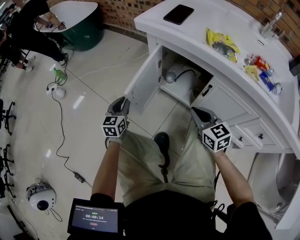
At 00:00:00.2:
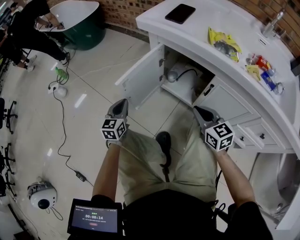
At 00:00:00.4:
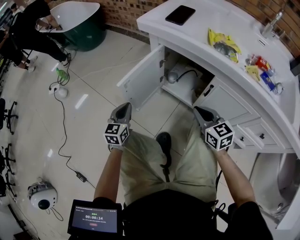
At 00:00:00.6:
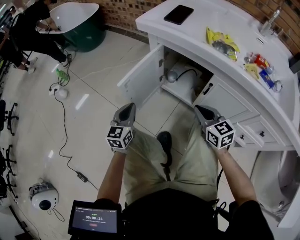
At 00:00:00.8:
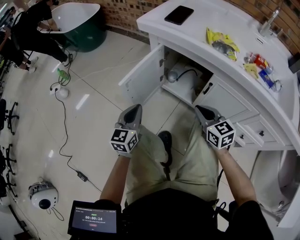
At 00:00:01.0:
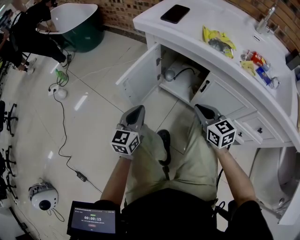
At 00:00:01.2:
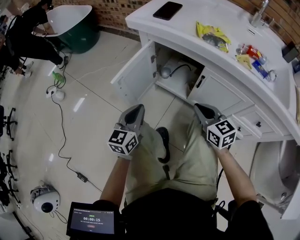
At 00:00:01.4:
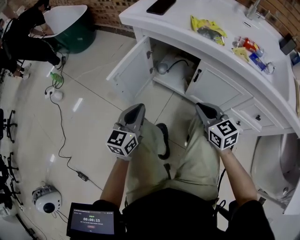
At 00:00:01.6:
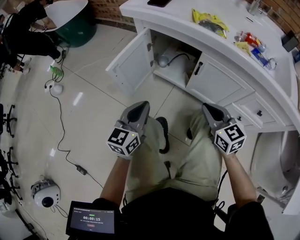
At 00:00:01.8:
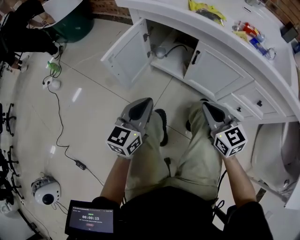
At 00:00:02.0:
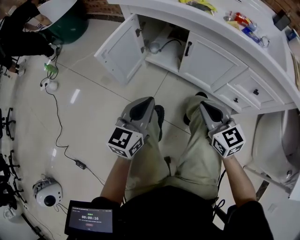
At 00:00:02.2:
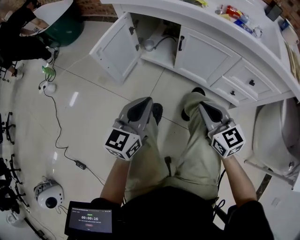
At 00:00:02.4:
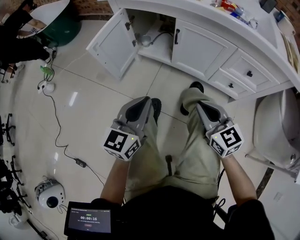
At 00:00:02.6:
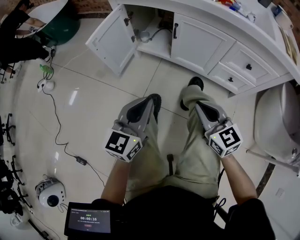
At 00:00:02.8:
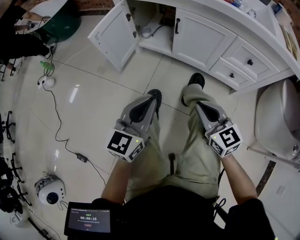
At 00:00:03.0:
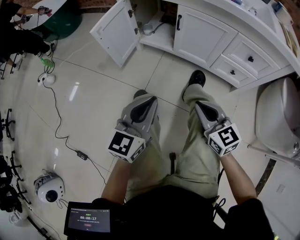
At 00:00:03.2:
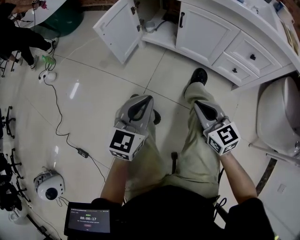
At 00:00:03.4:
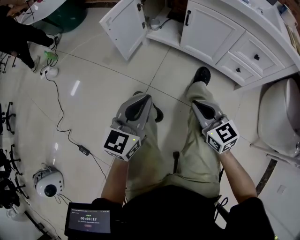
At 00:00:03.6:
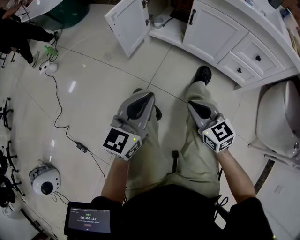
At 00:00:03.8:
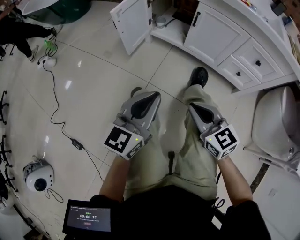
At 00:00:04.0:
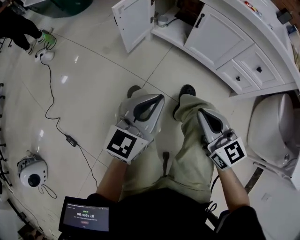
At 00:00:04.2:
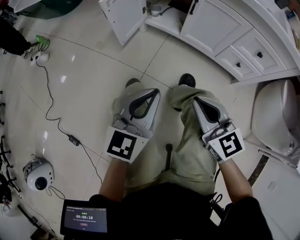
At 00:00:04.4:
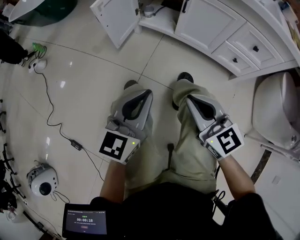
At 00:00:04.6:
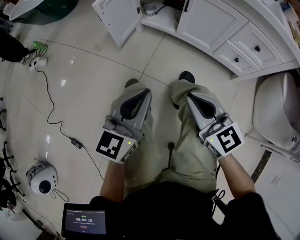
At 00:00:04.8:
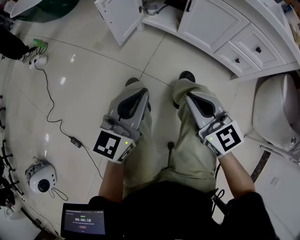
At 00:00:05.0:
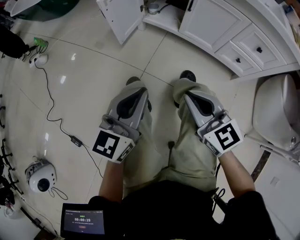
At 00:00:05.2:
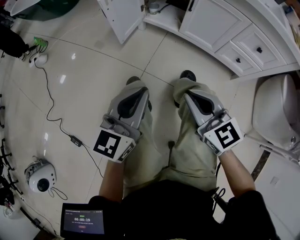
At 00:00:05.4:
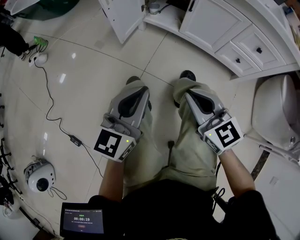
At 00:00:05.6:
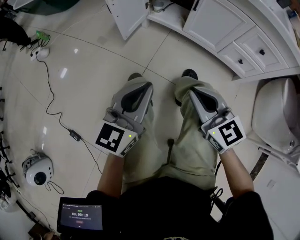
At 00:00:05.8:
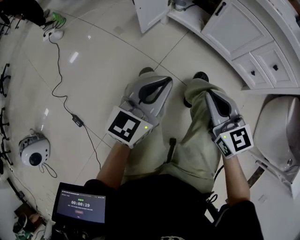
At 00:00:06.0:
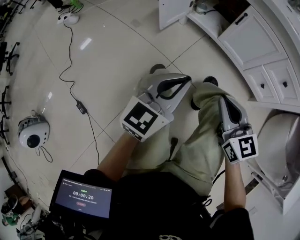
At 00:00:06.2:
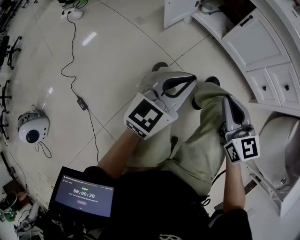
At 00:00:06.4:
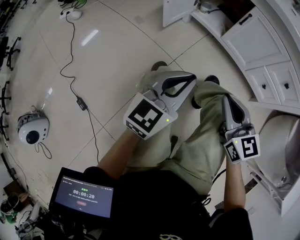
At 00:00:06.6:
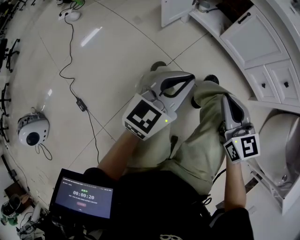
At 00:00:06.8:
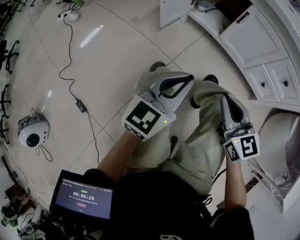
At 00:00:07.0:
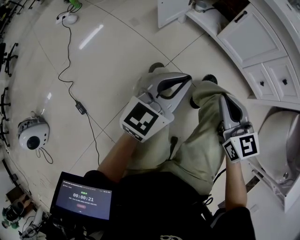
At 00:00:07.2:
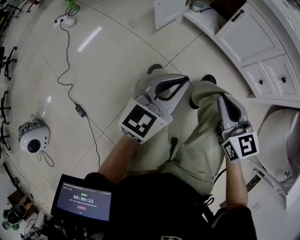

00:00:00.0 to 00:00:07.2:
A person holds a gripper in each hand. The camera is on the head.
00:00:00.0 to 00:00:01.4: The left gripper goes roughly 20 cm backward, to the right and upward, and closes, while the right gripper shifts approximately 5 cm backward.
00:00:01.4 to 00:00:02.8: The right gripper moves backward, about 25 cm; the left gripper is displaced backward and to the right by about 25 cm.
00:00:02.8 to 00:00:04.4: The left gripper heads backward, covering approximately 5 cm; the right gripper is displaced to the left and backward by some 10 cm.
00:00:04.4 to 00:00:05.8: The grippers stay close to where they were, moving slightly.
00:00:05.8 to 00:00:07.2: Both grippers stay put.

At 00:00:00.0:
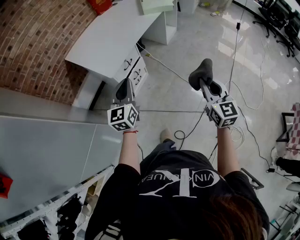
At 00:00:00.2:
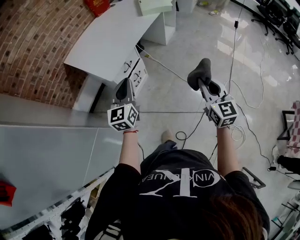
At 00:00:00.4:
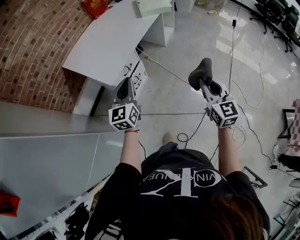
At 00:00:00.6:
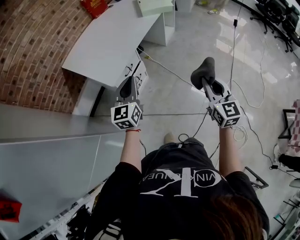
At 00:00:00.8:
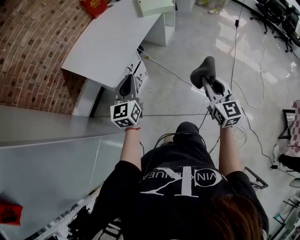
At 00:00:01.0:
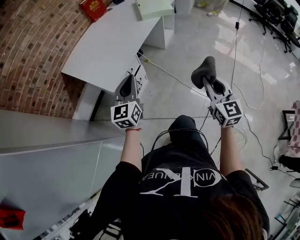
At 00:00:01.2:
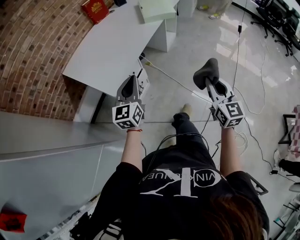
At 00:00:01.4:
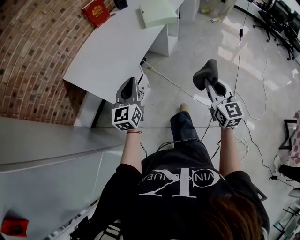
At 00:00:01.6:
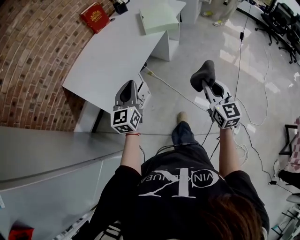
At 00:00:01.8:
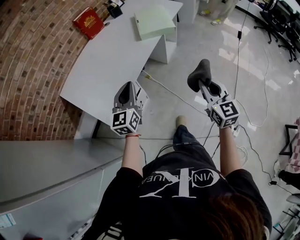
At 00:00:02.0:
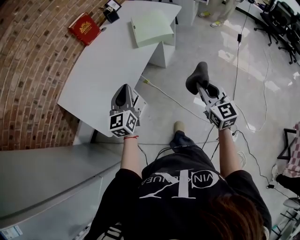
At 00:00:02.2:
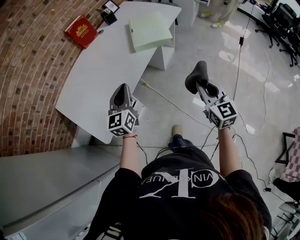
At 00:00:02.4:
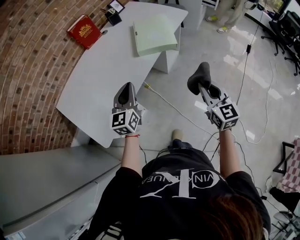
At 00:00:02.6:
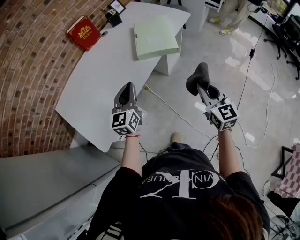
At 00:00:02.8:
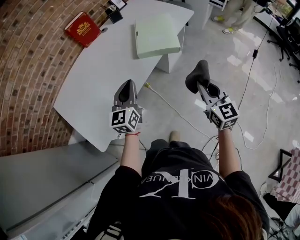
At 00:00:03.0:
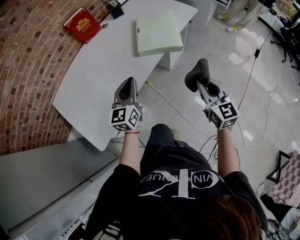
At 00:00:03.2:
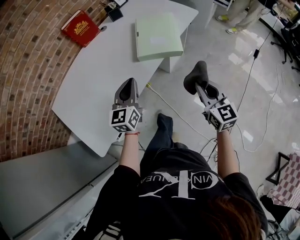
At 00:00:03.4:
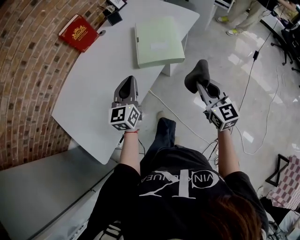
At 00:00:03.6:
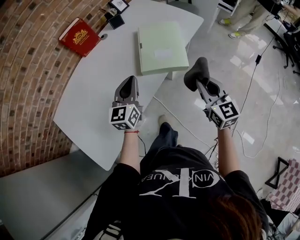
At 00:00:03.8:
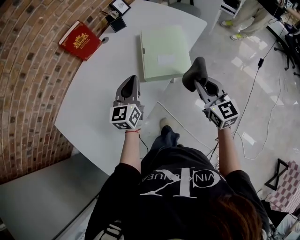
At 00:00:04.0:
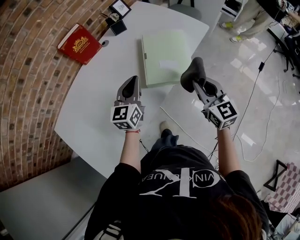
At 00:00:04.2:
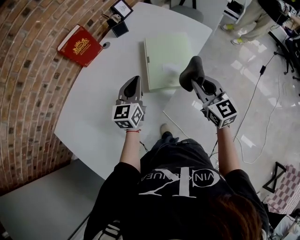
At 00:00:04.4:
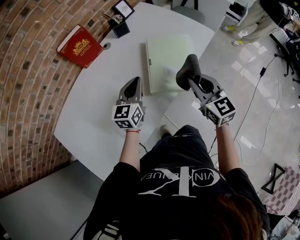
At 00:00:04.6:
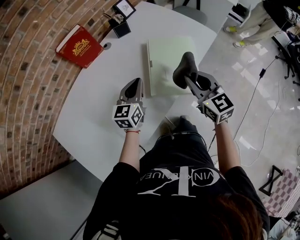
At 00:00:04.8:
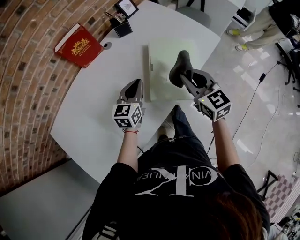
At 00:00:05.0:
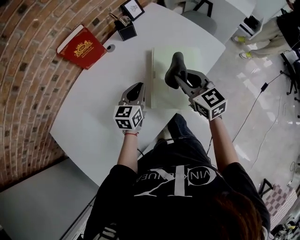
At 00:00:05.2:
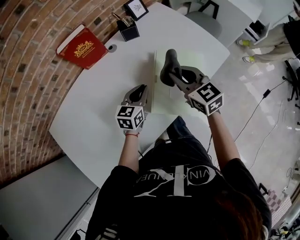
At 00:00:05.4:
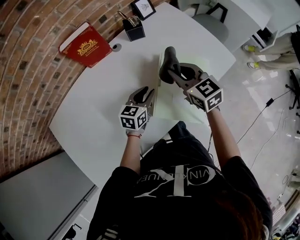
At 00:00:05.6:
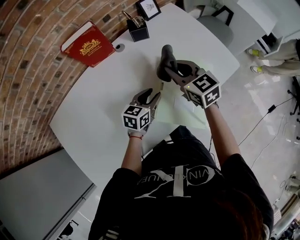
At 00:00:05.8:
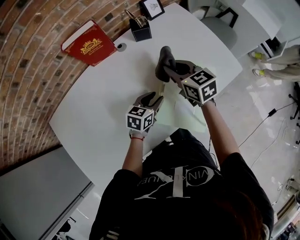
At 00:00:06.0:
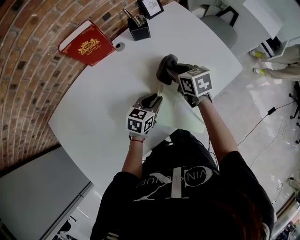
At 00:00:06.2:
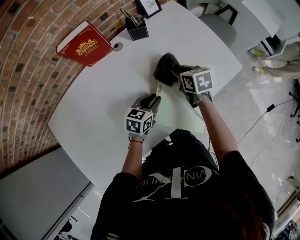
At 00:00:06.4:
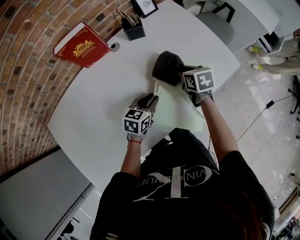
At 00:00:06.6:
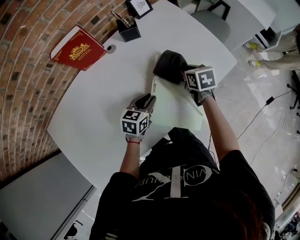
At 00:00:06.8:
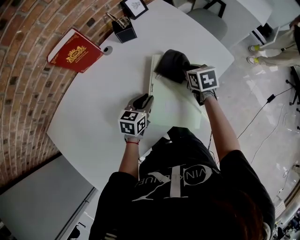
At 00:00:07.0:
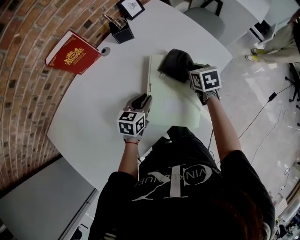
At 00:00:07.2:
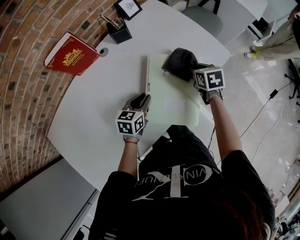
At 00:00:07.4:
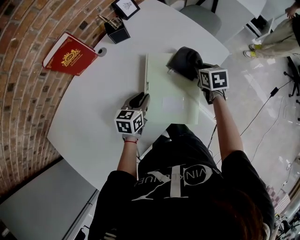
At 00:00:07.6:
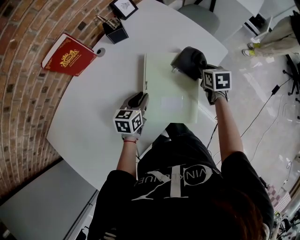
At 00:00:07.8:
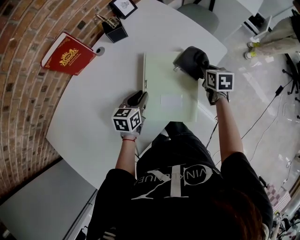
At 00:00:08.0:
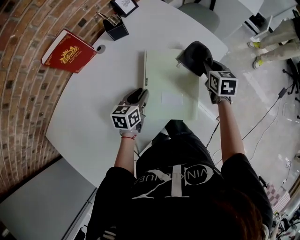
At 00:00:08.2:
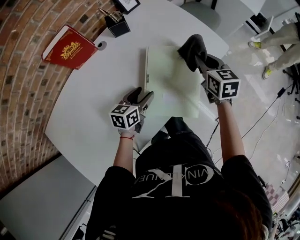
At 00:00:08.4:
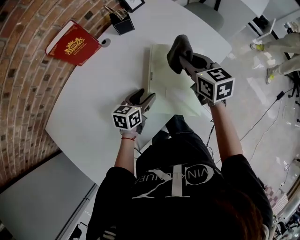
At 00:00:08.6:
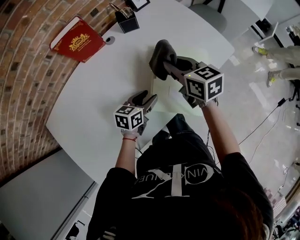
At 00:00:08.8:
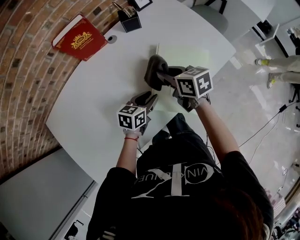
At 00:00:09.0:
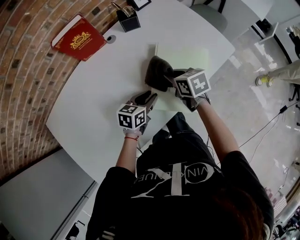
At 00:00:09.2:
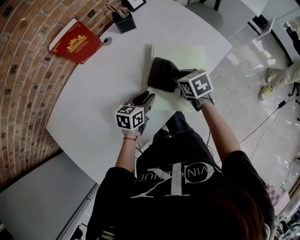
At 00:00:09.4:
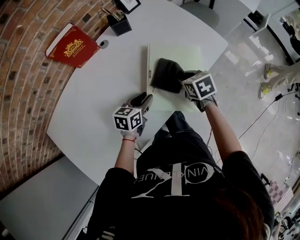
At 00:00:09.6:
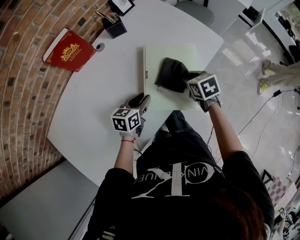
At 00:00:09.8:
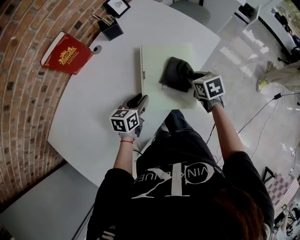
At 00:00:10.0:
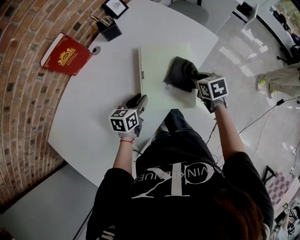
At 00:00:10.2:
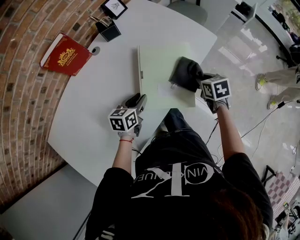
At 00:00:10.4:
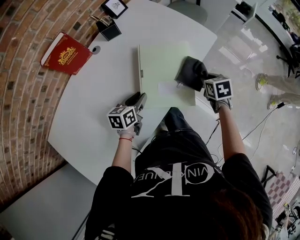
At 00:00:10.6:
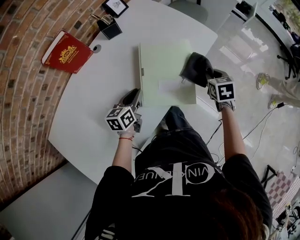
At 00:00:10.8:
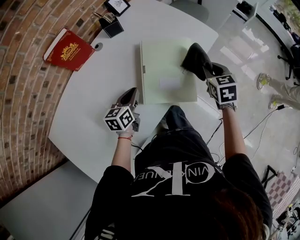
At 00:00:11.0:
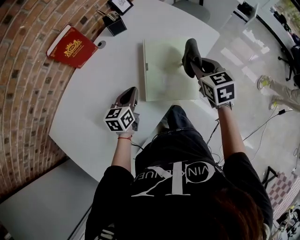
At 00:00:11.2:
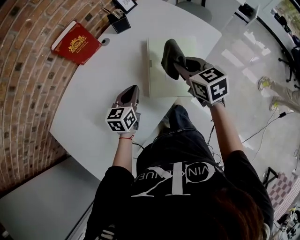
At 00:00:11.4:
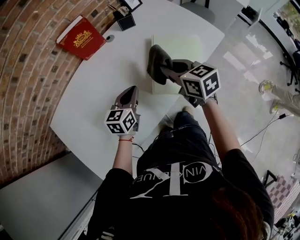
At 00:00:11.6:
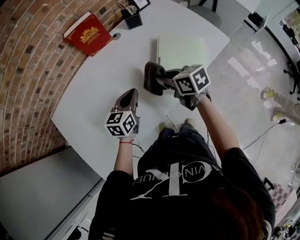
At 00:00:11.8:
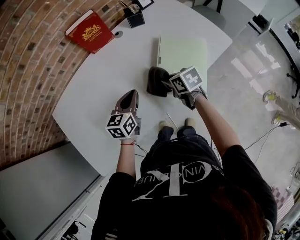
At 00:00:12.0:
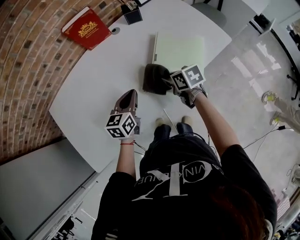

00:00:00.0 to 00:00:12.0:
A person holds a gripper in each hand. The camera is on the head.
00:00:00.0 to 00:00:01.6: The grippers both shift forward by about 20 cm.
00:00:01.6 to 00:00:03.0: The right gripper travels forward by some 30 cm; the left gripper shifts approximately 30 cm forward and to the right.
00:00:03.0 to 00:00:04.4: The two grippers go some 25 cm forward.
00:00:04.4 to 00:00:06.0: The left gripper goes approximately 15 cm downward, forward and to the right, turns by roughly 30 degrees, and opens; the right gripper heads forward and downward, covering roughly 30 cm, and swivels roughly 40 degrees.
00:00:06.0 to 00:00:07.6: The right gripper is displaced to the right by about 20 cm, and swivels about 30 degrees.
00:00:07.6 to 00:00:09.0: The left gripper moves backward, approximately 5 cm, and opens, then closes again. Meanwhile the right gripper heads to the left and backward, covering about 20 cm, and swivels roughly 30 degrees.
00:00:09.0 to 00:00:10.4: The right gripper is displaced to the right by approximately 25 cm, and changes its angle by some 30 degrees.
00:00:10.4 to 00:00:12.0: The left gripper shifts by about 15 cm, turns by about 30 degrees, and closes up, while the right gripper reaches about 15 cm upward, then returns, and changes its angle by approximately 40 degrees.

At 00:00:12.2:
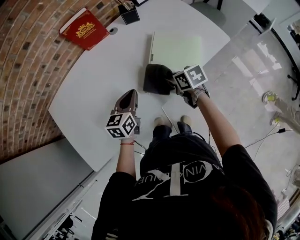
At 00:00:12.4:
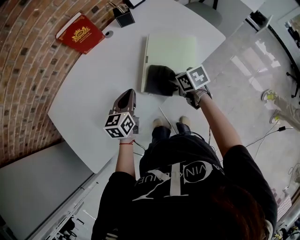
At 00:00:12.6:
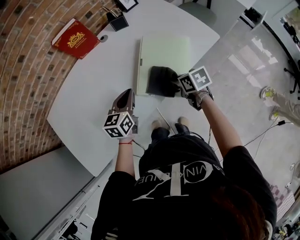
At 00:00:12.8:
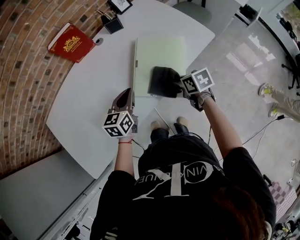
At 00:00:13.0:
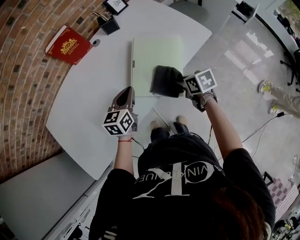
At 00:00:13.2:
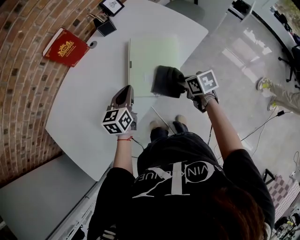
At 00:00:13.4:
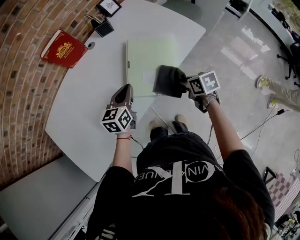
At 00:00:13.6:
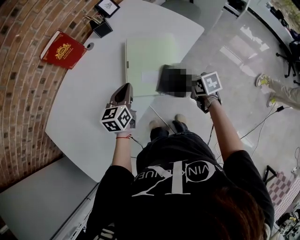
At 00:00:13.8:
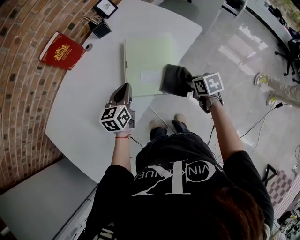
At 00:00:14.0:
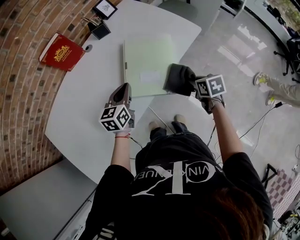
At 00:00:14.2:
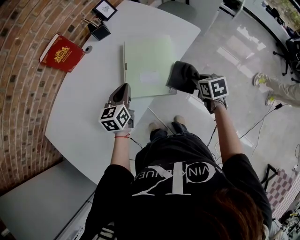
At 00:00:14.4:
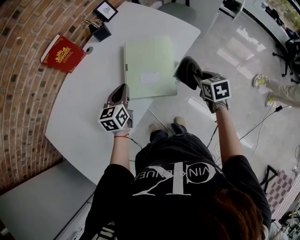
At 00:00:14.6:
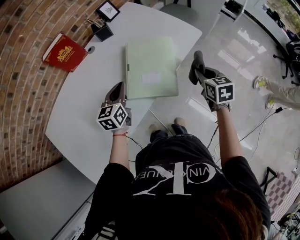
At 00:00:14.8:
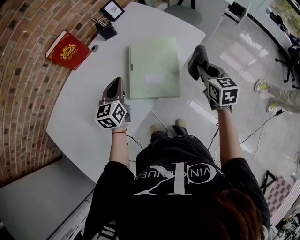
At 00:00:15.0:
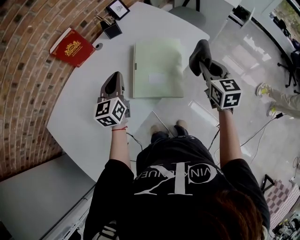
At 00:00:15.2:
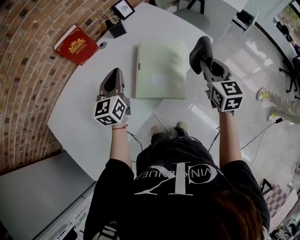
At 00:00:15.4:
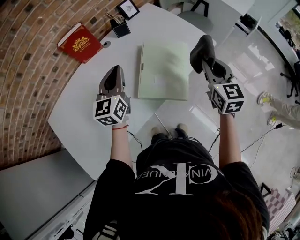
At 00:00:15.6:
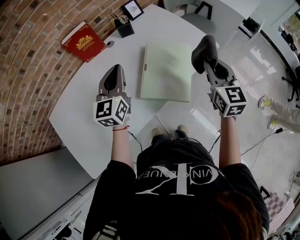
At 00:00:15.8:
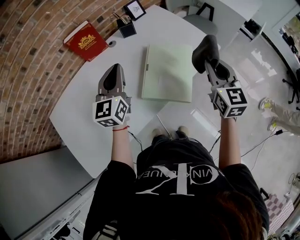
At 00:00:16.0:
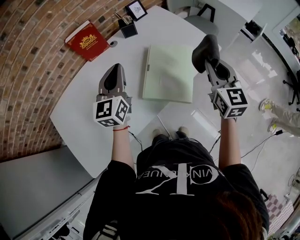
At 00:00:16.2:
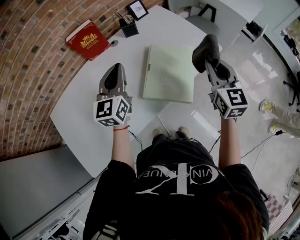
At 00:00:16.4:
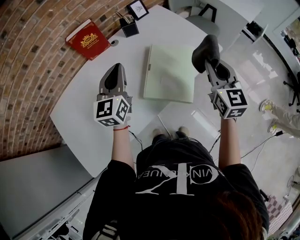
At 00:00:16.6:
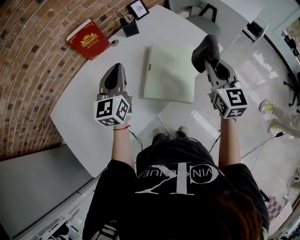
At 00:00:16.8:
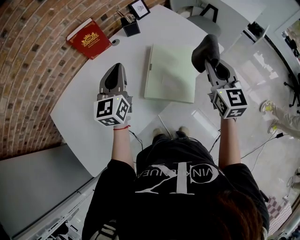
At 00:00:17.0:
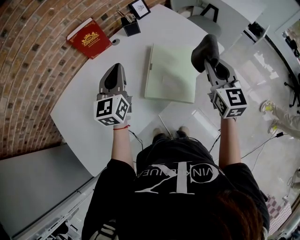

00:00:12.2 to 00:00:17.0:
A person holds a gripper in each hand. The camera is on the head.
00:00:12.2 to 00:00:13.8: The right gripper travels to the right and backward by roughly 20 cm, and swivels some 20 degrees. Meanwhile the left gripper goes roughly 10 cm to the right.
00:00:13.8 to 00:00:15.4: The left gripper shifts approximately 15 cm upward and to the left, and rotates approximately 30 degrees. The right gripper heads upward, covering some 20 cm, and tilts its fingers roughly 40 degrees upward.
00:00:15.4 to 00:00:17.0: The grippers make only small movements.
